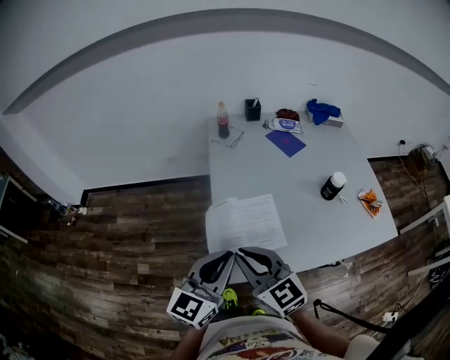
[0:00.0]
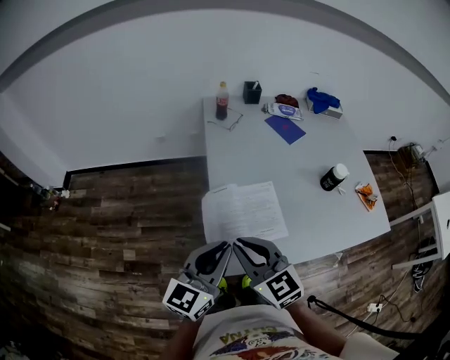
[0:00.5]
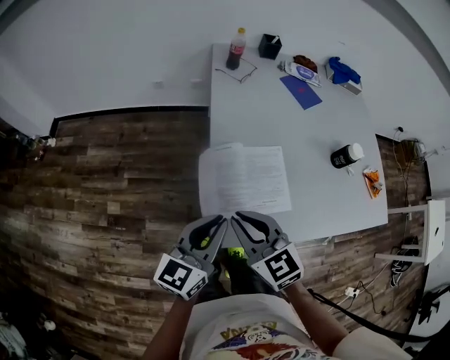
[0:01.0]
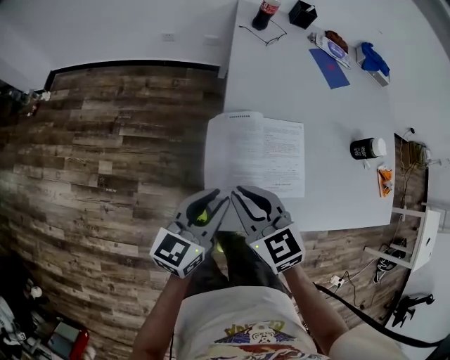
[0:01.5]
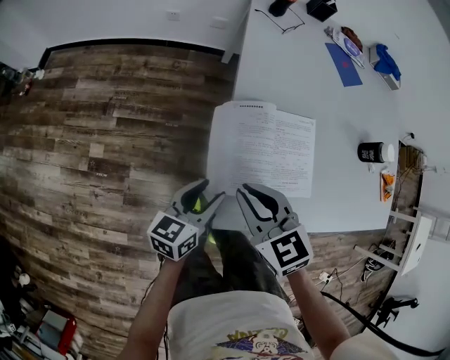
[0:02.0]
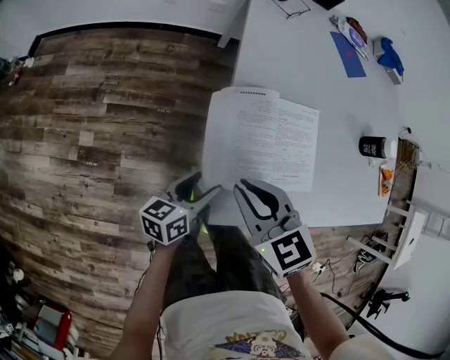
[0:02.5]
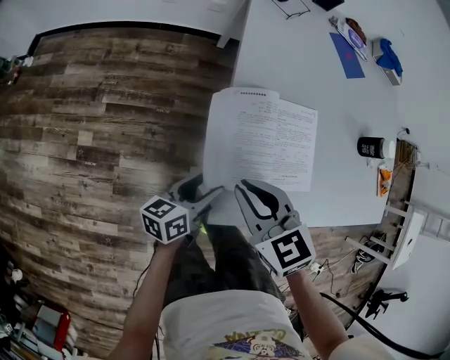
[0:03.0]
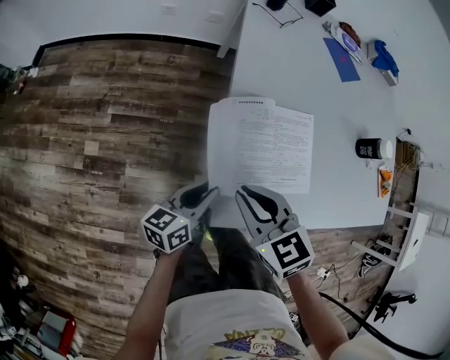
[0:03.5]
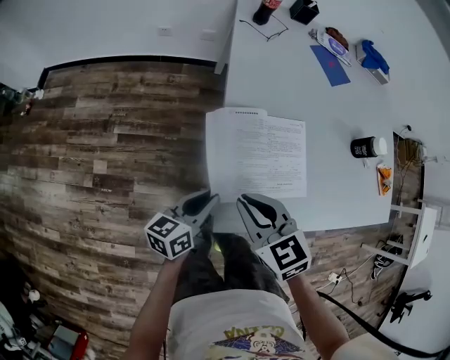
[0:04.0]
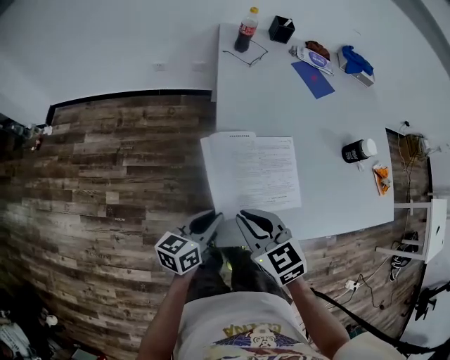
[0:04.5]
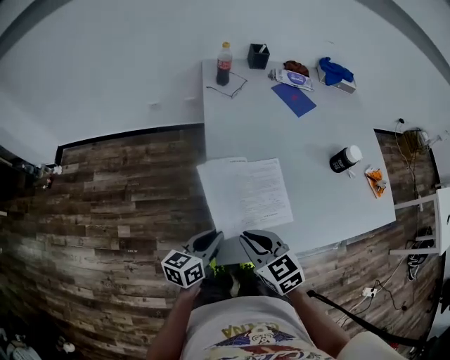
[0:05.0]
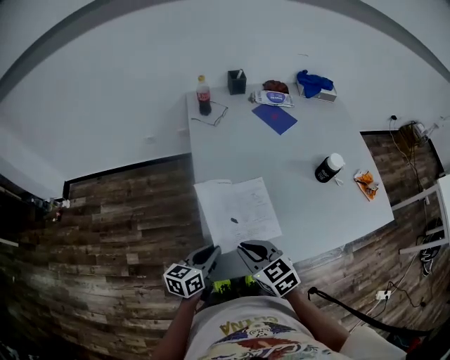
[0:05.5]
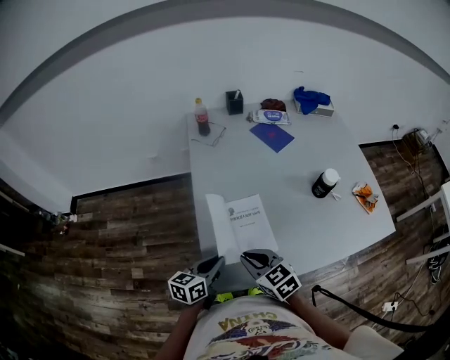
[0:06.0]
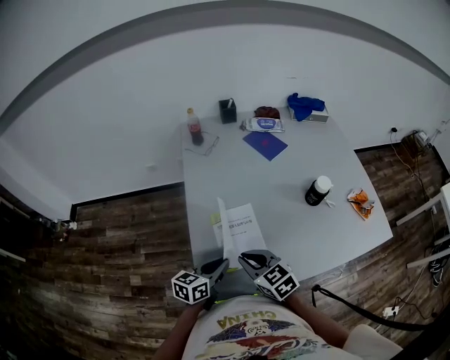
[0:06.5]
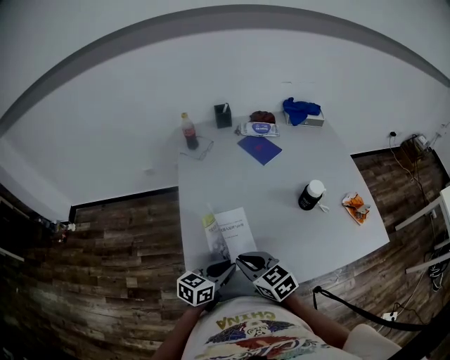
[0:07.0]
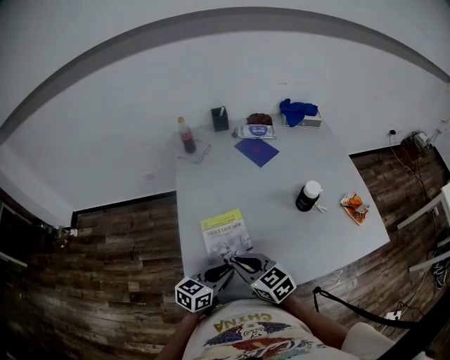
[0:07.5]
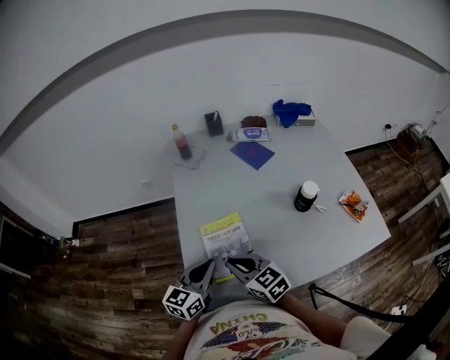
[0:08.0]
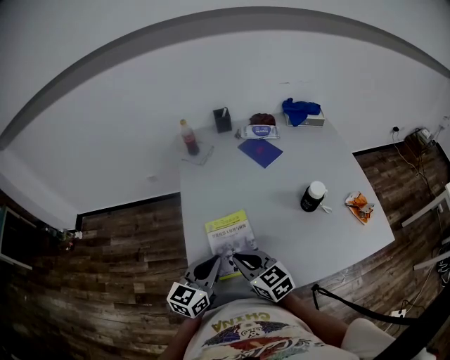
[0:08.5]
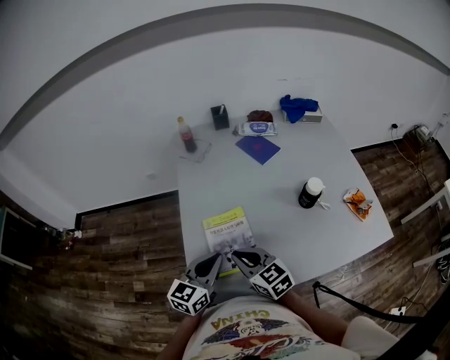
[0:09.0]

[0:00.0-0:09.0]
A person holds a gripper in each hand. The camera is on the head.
0:00.0 to 0:02.0: The grippers both shift downward by roughly 30 cm. The left gripper rotates roughly 40 degrees, and opens its fingers, while the right gripper changes its angle by roughly 30 degrees.
0:02.0 to 0:04.5: The left gripper shifts roughly 5 cm upward, and closes.
0:04.5 to 0:07.0: Both grippers move to the right, roughly 20 cm. The left gripper rotates about 20 degrees.
0:07.0 to 0:09.0: The left gripper moves upward, some 10 cm, and swivels about 20 degrees.

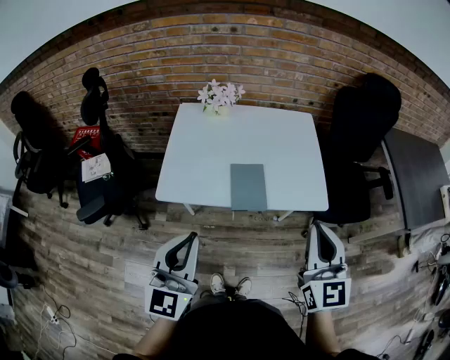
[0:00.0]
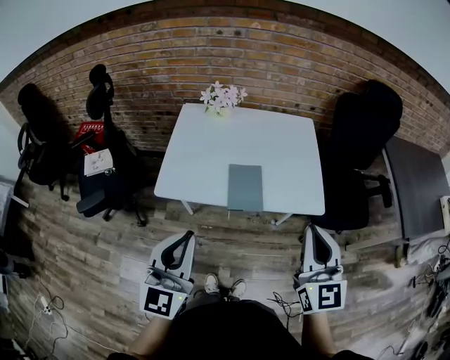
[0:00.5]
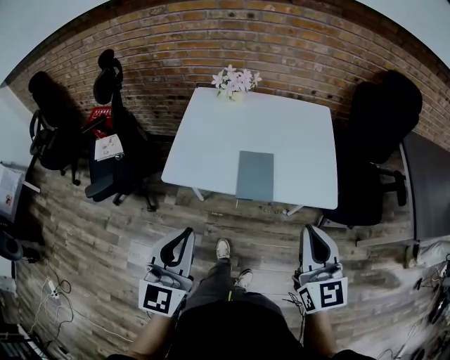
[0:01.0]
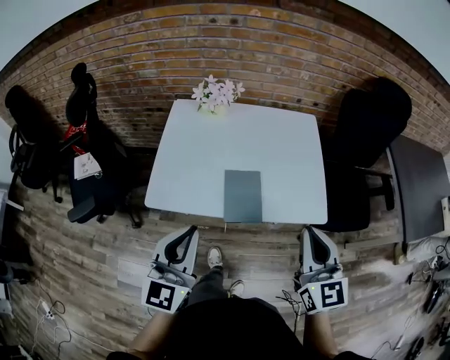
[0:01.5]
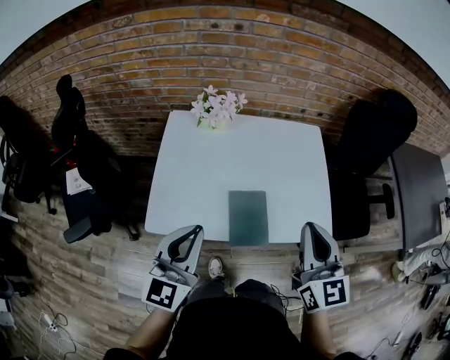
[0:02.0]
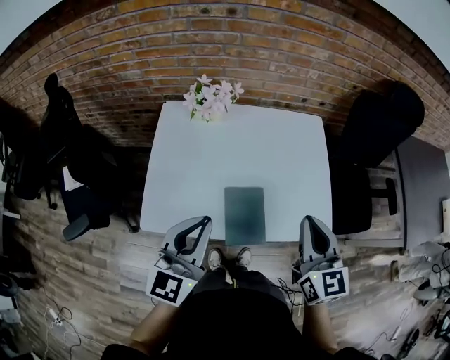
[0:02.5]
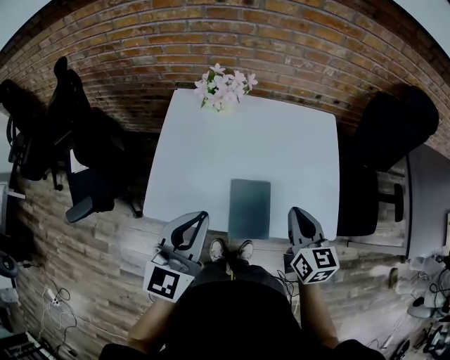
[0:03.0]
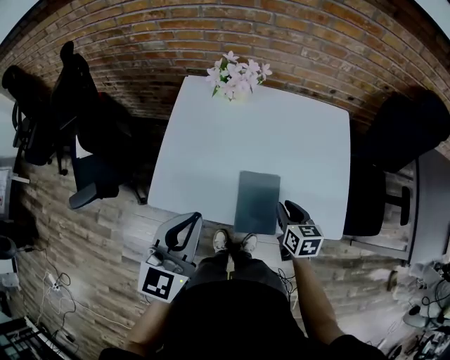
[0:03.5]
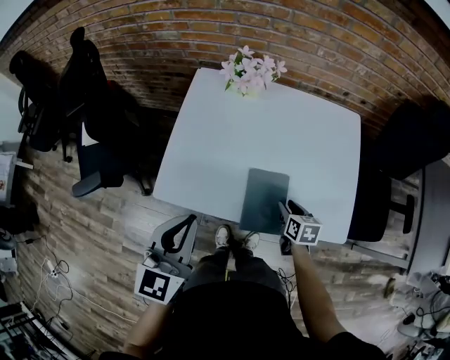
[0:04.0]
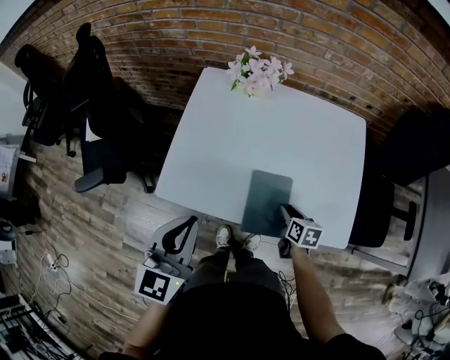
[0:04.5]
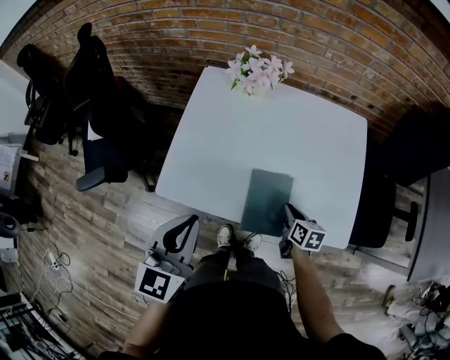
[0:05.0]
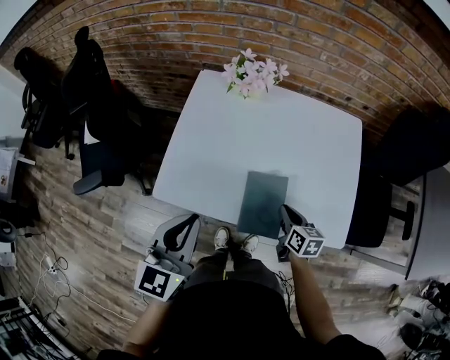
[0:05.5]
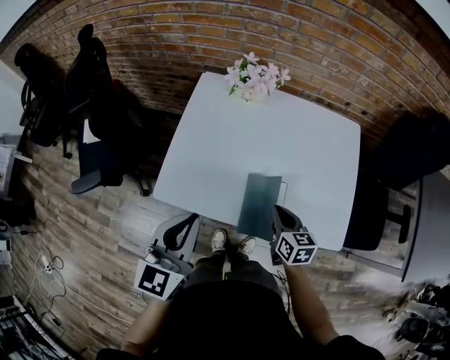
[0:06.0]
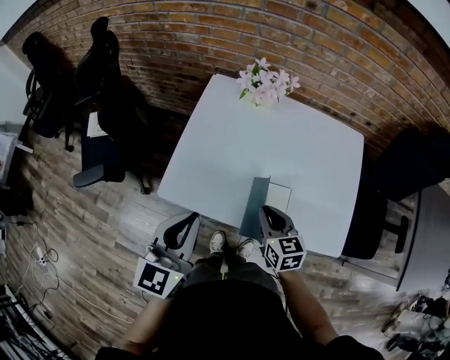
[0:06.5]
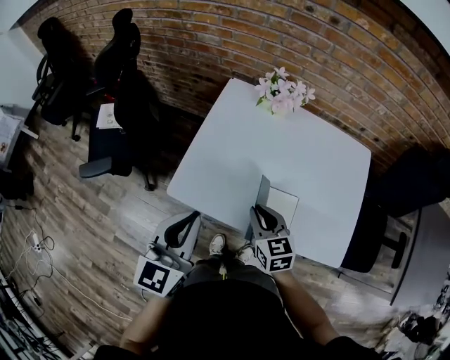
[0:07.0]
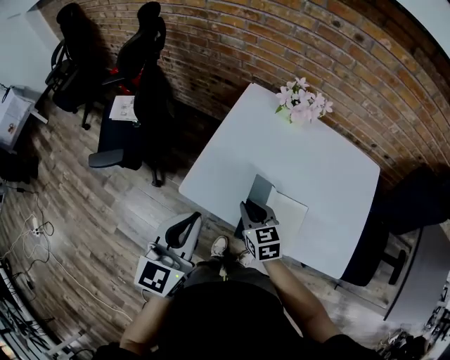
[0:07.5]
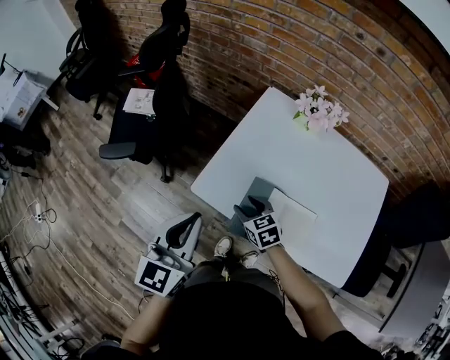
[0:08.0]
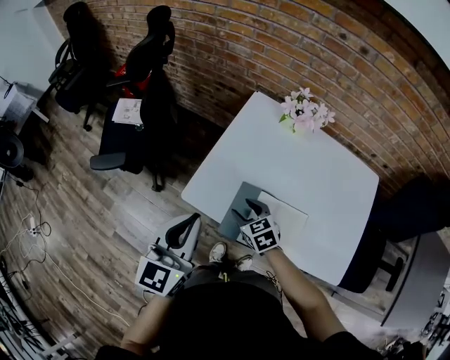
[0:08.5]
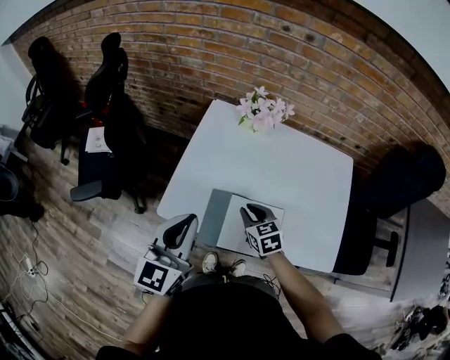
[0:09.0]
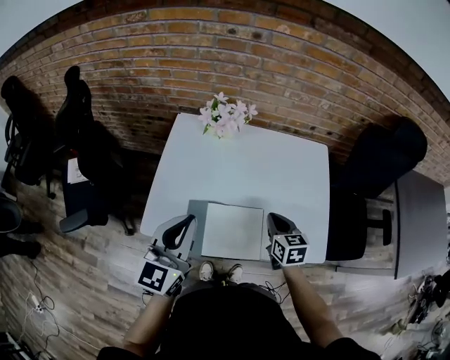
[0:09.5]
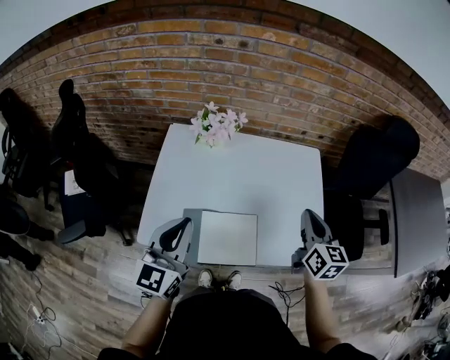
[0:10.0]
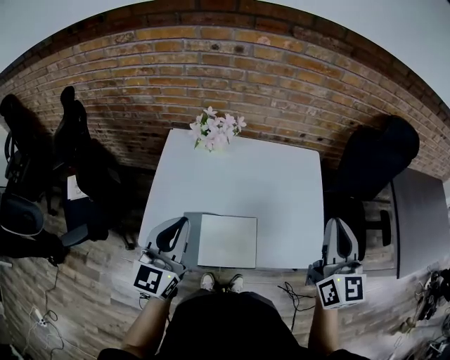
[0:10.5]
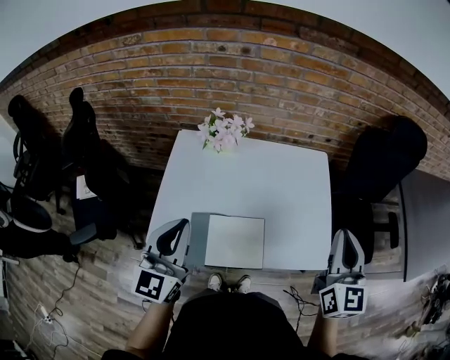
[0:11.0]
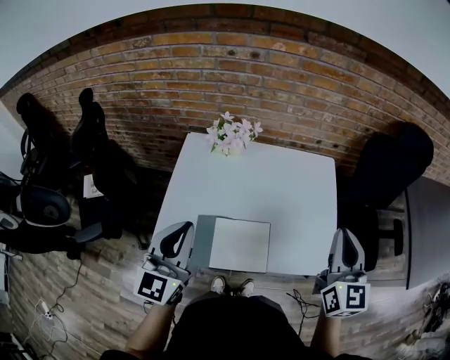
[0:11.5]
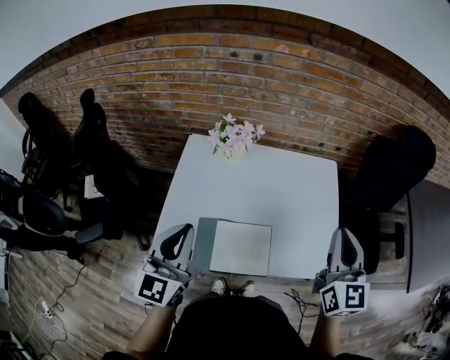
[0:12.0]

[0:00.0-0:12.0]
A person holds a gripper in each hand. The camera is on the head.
0:00.0 to 0:02.0: The grippers both shift forward by approximately 20 cm.
0:02.0 to 0:04.0: The left gripper ends up about 5 cm from where it was. Meanwhile the right gripper goes roughly 35 cm downward, tips its fingers downward by about 40 degrees, and opens.
0:04.0 to 0:06.0: The right gripper heads upward, covering about 10 cm, and closes up.
0:06.0 to 0:08.0: The right gripper moves some 25 cm, turns by roughly 40 degrees, and opens up, while the left gripper changes place by roughly 15 cm.
0:08.0 to 0:10.0: The left gripper ends up approximately 20 cm from where it was, and rotates some 20 degrees, while the right gripper moves roughly 50 cm, changes its angle by some 60 degrees, and closes its fingers.
0:10.0 to 0:12.0: The right gripper goes roughly 10 cm upward.

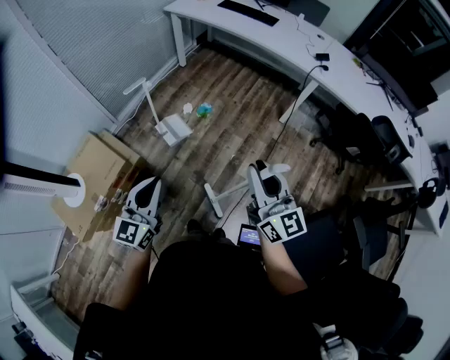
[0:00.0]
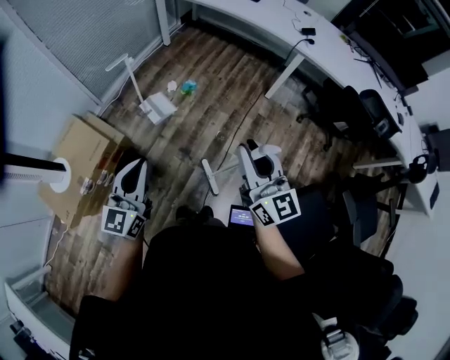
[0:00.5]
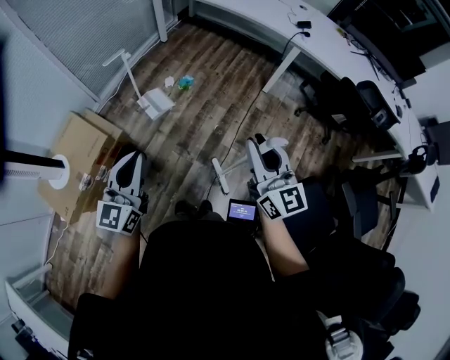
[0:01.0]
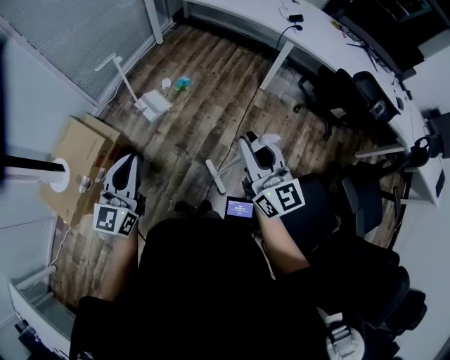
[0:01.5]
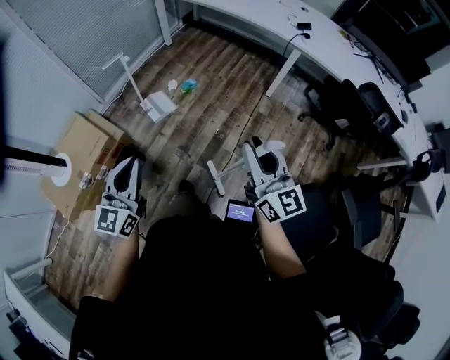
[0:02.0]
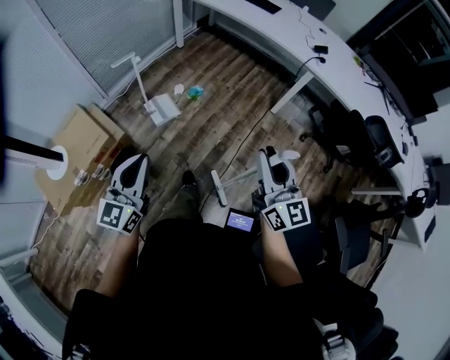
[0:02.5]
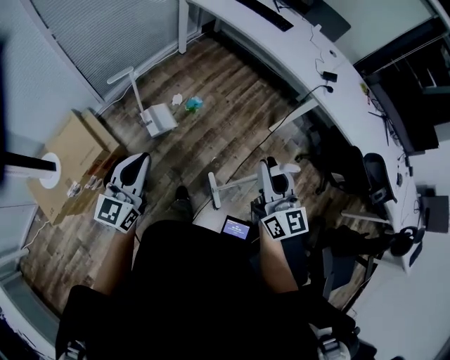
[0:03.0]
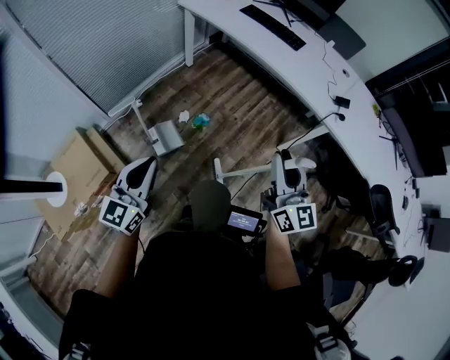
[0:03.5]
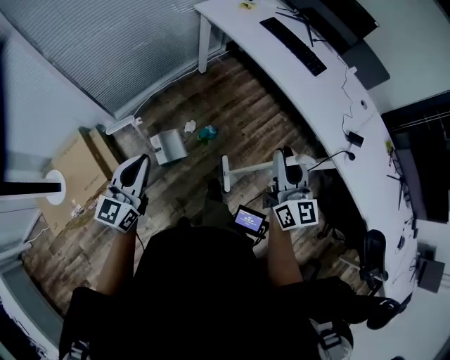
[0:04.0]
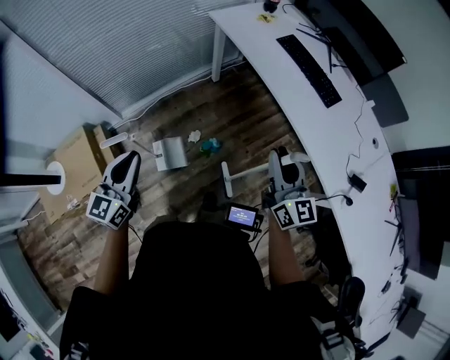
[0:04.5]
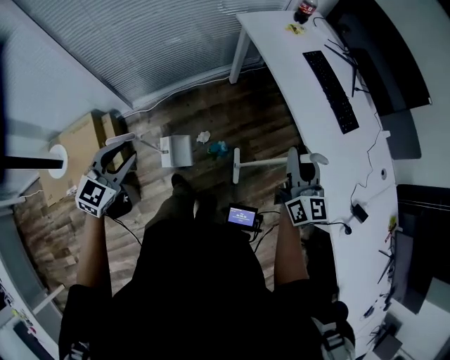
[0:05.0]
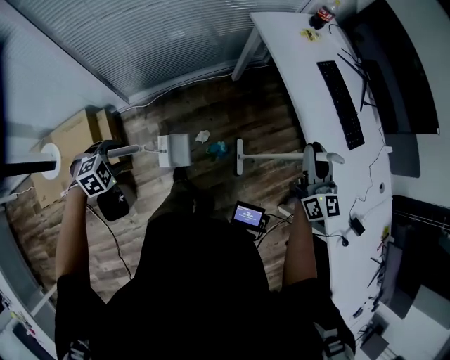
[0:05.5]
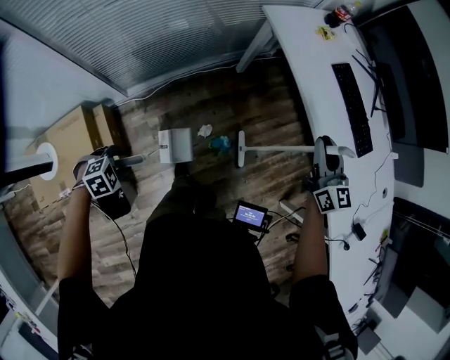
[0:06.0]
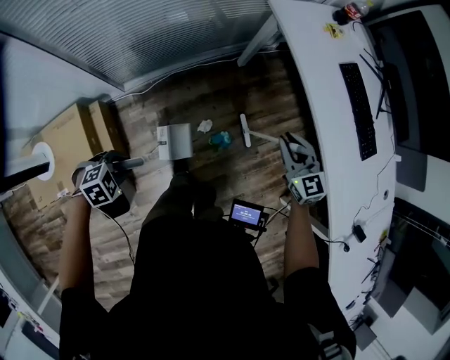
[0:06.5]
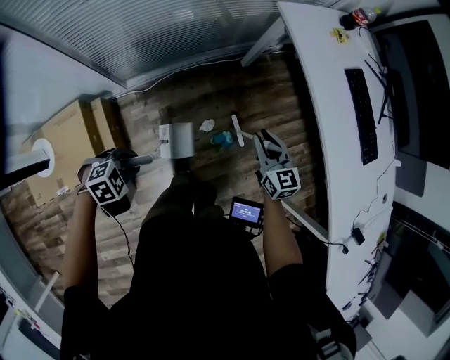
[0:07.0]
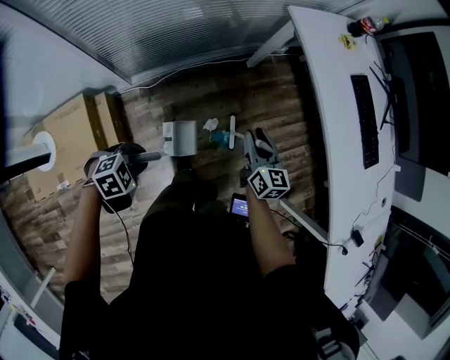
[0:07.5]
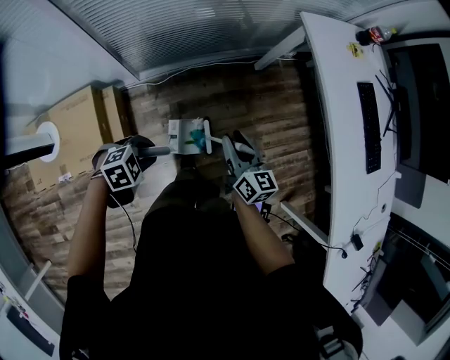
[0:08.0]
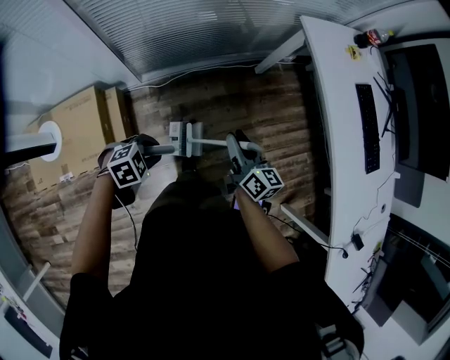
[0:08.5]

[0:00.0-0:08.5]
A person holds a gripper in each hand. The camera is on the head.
0:00.0 to 0:02.0: The left gripper heads to the right and backward, covering approximately 10 cm. The right gripper travels to the right by about 10 cm.
0:02.0 to 0:04.0: The two grippers travel together, forward, roughly 50 cm.
0:04.0 to 0:06.5: The right gripper travels forward and downward by about 40 cm, and swivels roughly 50 degrees. Meanwhile the left gripper is displaced downward, to the left and forward by roughly 35 cm, angles its fingers downward, by roughly 70 degrees, and opens.
0:06.5 to 0:08.5: The right gripper shifts roughly 25 cm to the left and backward, and rolls clockwise, seen from behind, by about 40 degrees.
